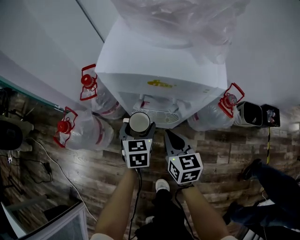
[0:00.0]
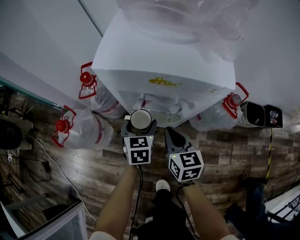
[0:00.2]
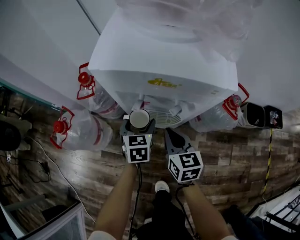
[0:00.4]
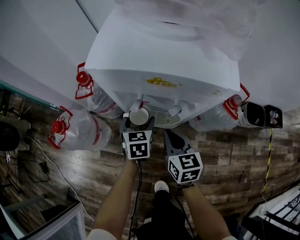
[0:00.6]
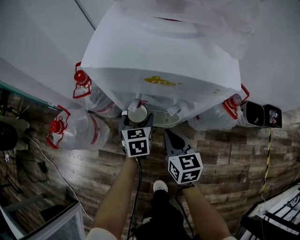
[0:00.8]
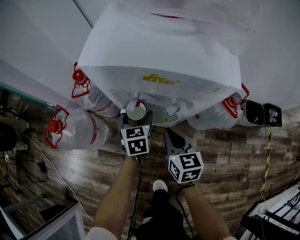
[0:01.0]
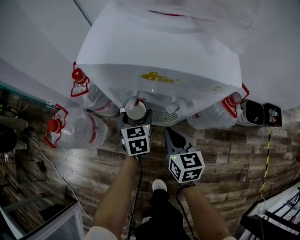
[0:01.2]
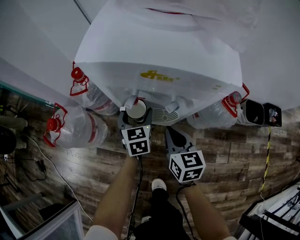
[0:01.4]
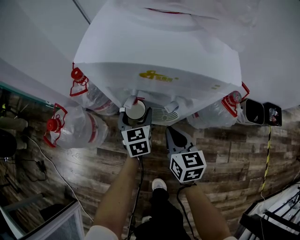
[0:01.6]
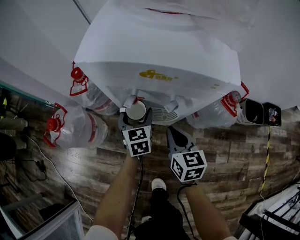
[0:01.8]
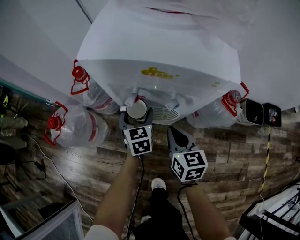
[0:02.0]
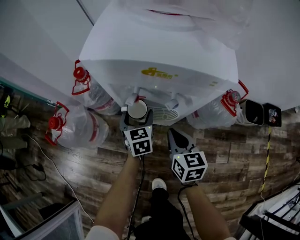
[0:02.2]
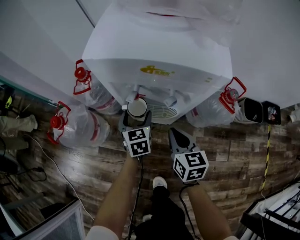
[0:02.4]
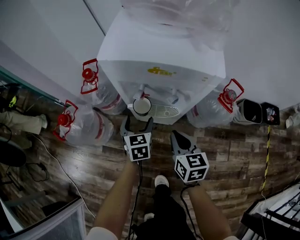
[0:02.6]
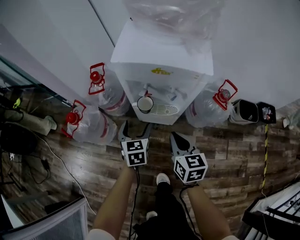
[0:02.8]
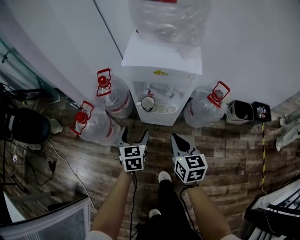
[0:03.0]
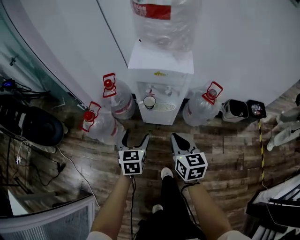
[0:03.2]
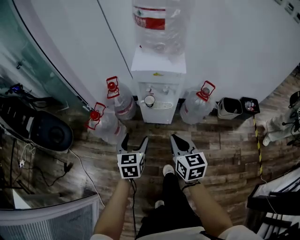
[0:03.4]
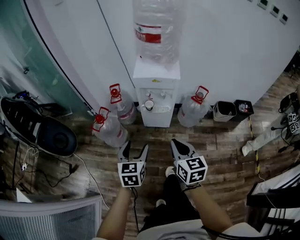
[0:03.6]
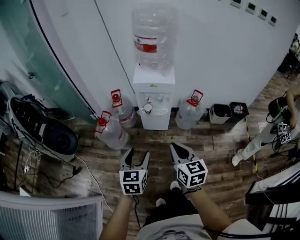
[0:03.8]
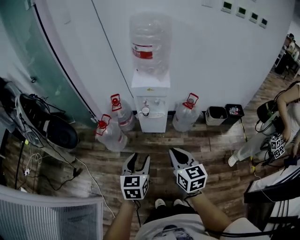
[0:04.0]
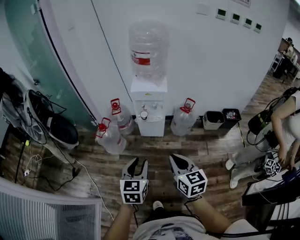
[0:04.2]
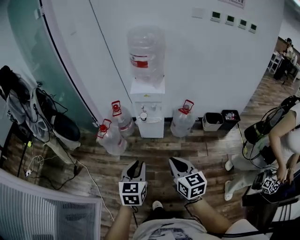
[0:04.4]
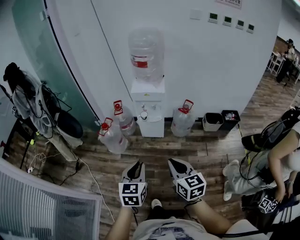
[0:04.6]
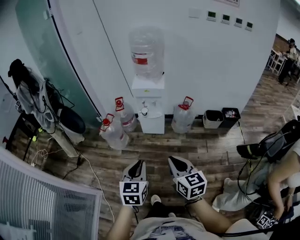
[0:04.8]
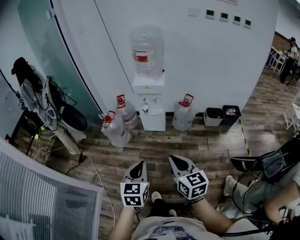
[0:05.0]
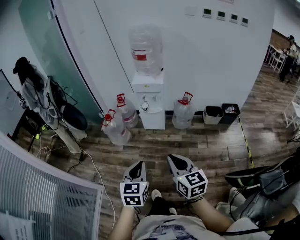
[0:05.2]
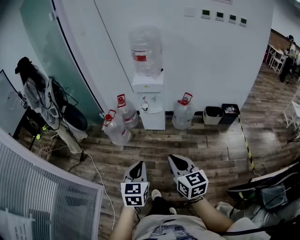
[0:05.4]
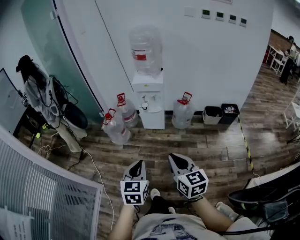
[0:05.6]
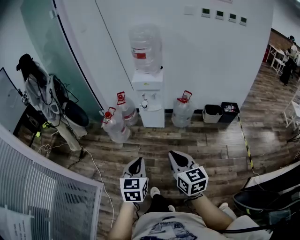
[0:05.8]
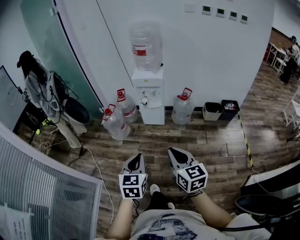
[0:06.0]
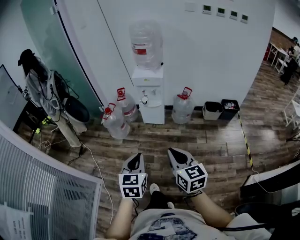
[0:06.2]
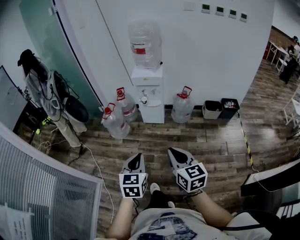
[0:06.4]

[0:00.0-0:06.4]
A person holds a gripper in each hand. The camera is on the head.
0:00.0 to 0:01.6: The right gripper ends up about 5 cm from where it was, while the left gripper shifts some 10 cm downward and forward.
0:01.6 to 0:03.2: The right gripper heads upward and backward, covering approximately 30 cm. The left gripper heads backward and upward, covering approximately 35 cm.
0:03.2 to 0:04.8: Both grippers are carried backward, roughly 50 cm. Both grippers travel together upward, roughly 30 cm. The left gripper closes its fingers.
0:04.8 to 0:06.4: Both grippers travel together backward, about 10 cm.

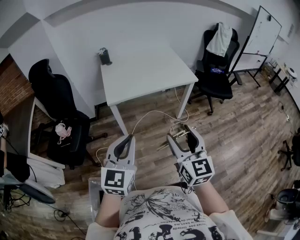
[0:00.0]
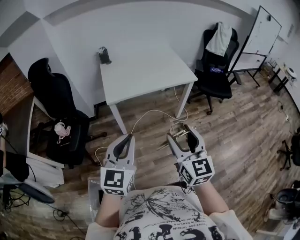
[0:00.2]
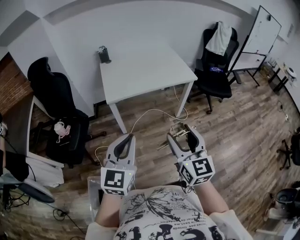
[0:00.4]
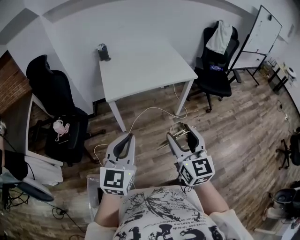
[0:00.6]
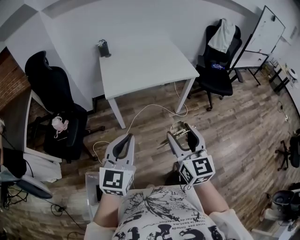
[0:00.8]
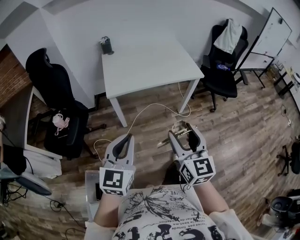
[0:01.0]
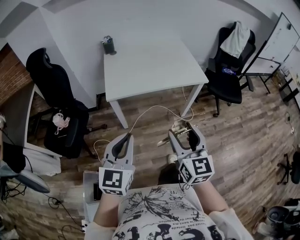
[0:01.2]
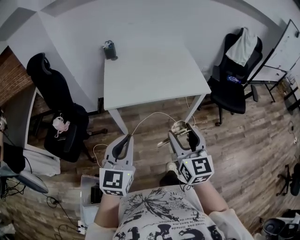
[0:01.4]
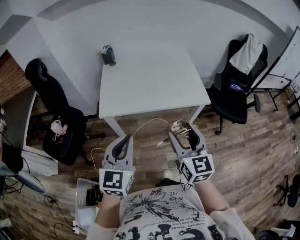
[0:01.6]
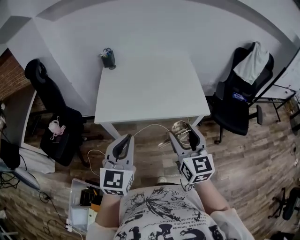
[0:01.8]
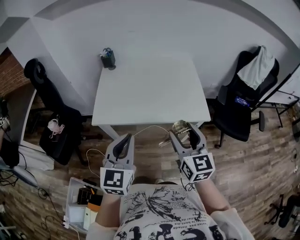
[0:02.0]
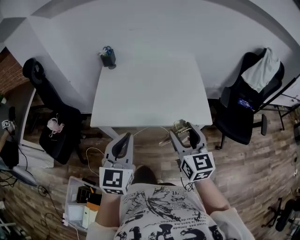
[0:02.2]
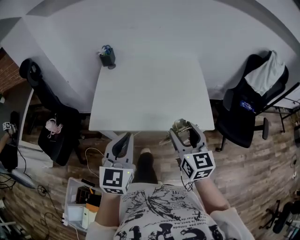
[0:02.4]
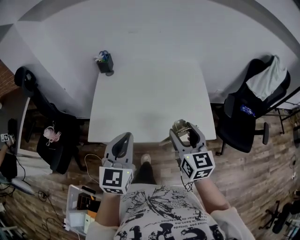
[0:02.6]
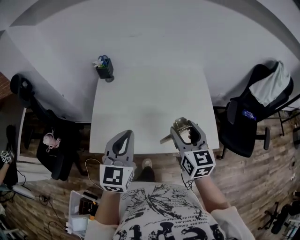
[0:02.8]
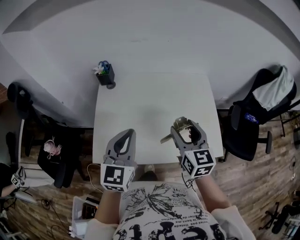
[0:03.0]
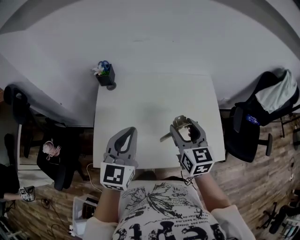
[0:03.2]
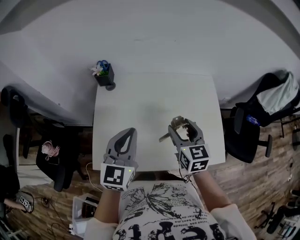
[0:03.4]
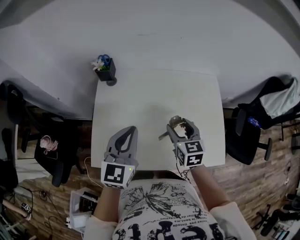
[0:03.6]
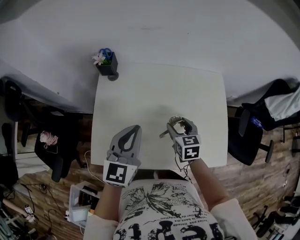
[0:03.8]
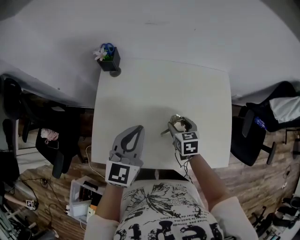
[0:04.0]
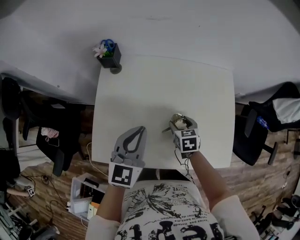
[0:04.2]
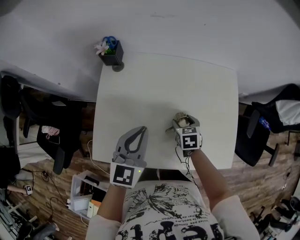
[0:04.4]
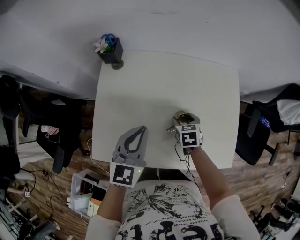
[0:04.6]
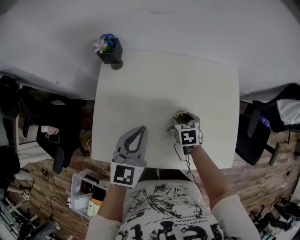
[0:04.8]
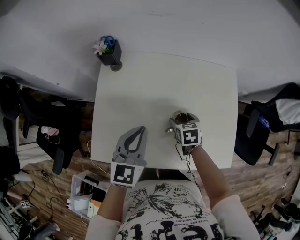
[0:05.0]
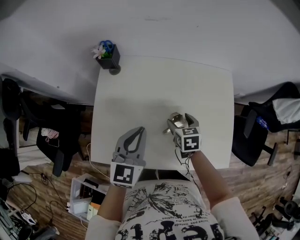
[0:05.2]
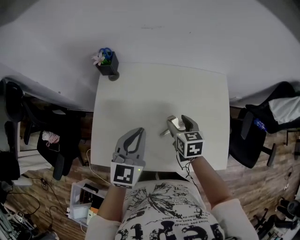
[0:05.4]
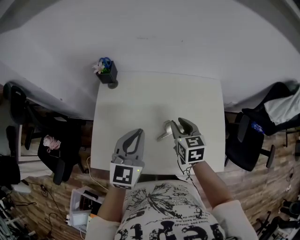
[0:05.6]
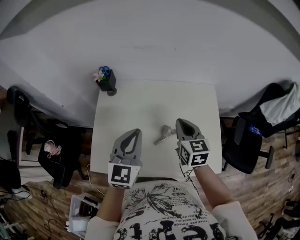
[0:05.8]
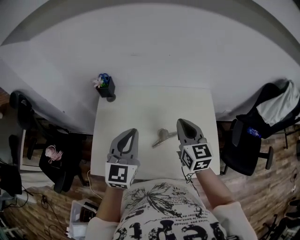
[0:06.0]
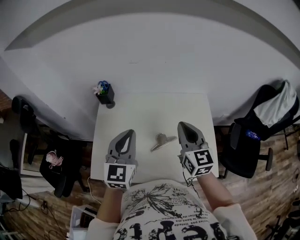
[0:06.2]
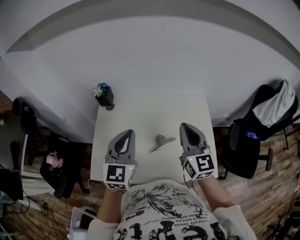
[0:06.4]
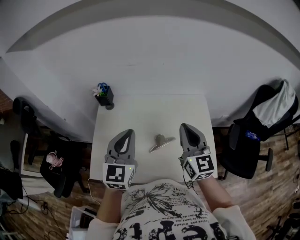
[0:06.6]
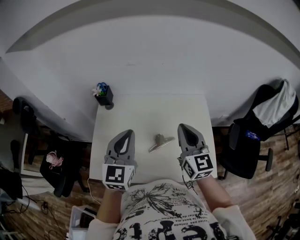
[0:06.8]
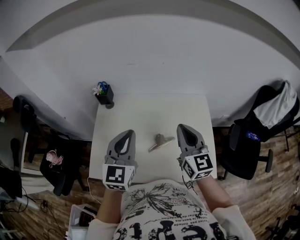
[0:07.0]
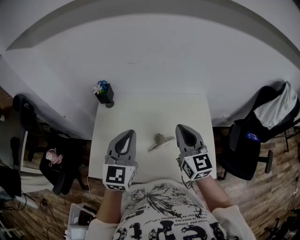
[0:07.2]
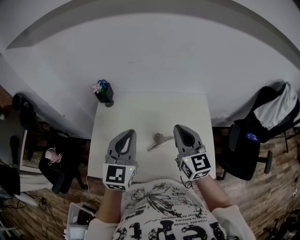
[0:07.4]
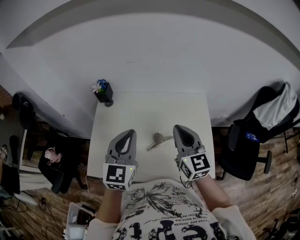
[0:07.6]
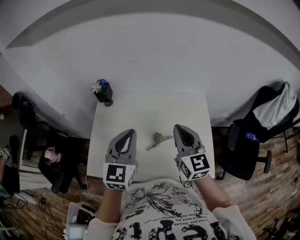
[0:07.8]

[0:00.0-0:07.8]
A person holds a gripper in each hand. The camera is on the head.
0:00.0 to 0:01.6: Both grippers move forward, roughly 25 cm.
0:01.6 to 0:03.2: Both grippers are carried forward, approximately 40 cm.
0:03.2 to 0:04.6: The left gripper shifts some 10 cm downward and forward. The right gripper heads downward, covering some 25 cm, and tips its fingers downward by about 40 degrees.
0:04.6 to 0:06.2: The right gripper is displaced upward by some 30 cm, tips its fingers upward by some 50 degrees, and closes up. Meanwhile the left gripper is displaced upward by about 15 cm.
0:06.2 to 0:07.8: The grippers move only a little.

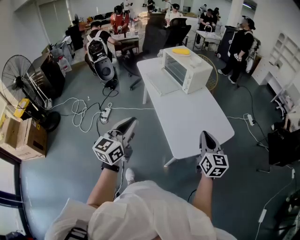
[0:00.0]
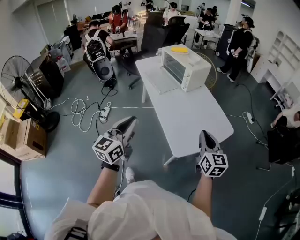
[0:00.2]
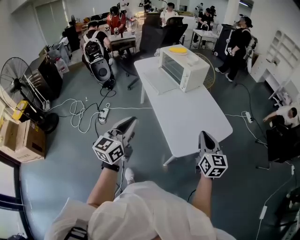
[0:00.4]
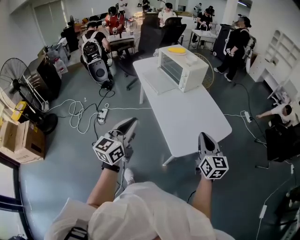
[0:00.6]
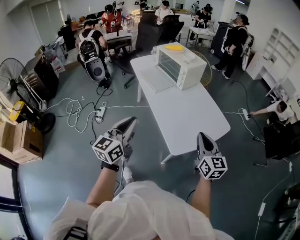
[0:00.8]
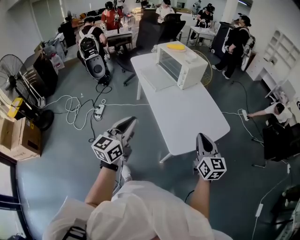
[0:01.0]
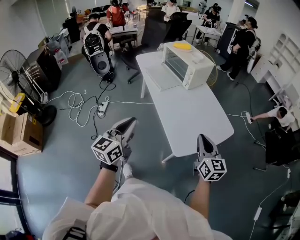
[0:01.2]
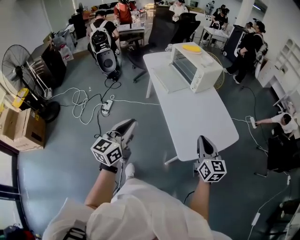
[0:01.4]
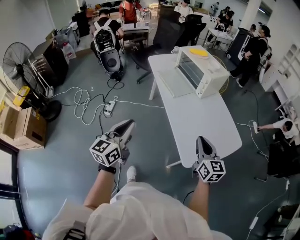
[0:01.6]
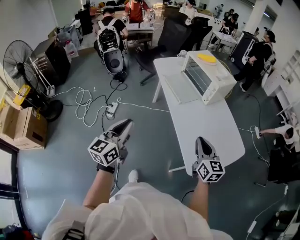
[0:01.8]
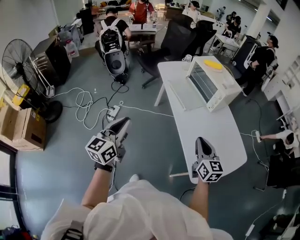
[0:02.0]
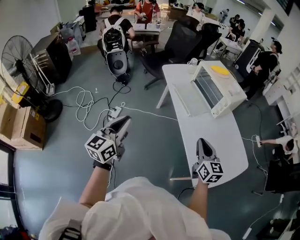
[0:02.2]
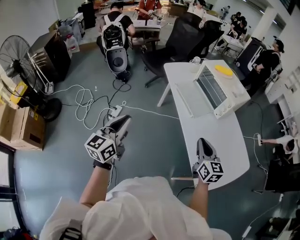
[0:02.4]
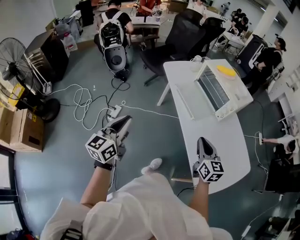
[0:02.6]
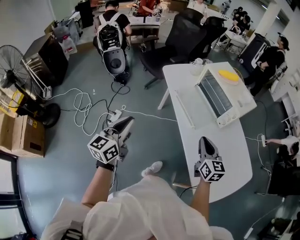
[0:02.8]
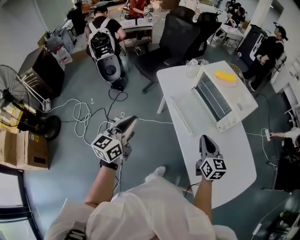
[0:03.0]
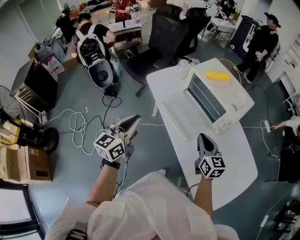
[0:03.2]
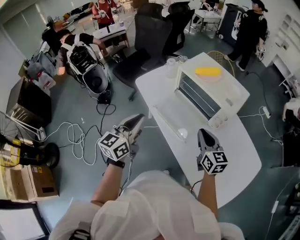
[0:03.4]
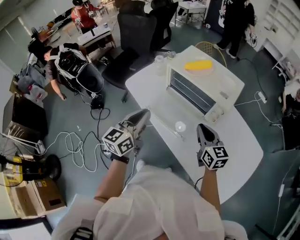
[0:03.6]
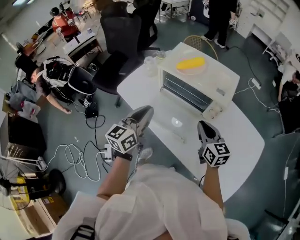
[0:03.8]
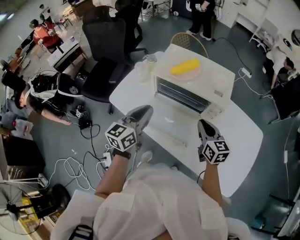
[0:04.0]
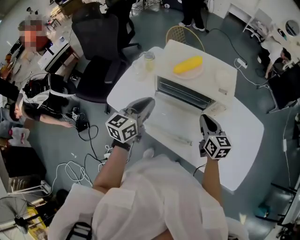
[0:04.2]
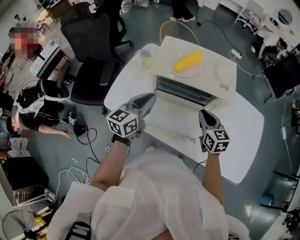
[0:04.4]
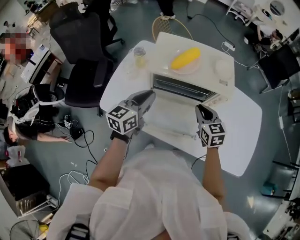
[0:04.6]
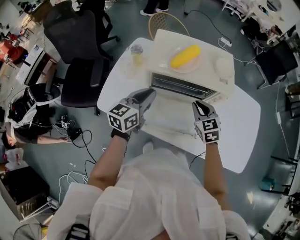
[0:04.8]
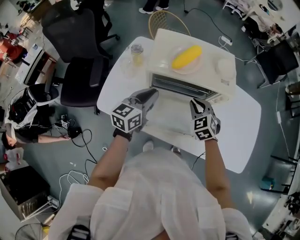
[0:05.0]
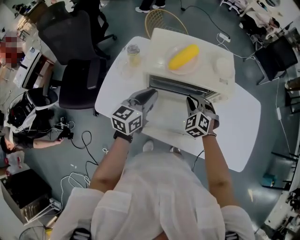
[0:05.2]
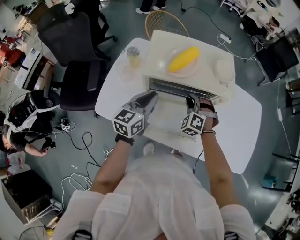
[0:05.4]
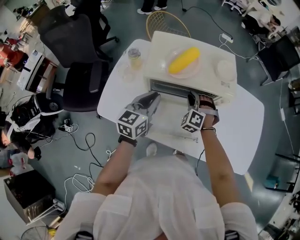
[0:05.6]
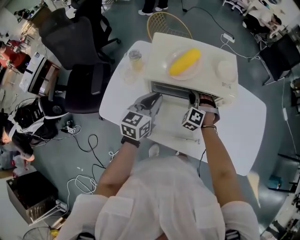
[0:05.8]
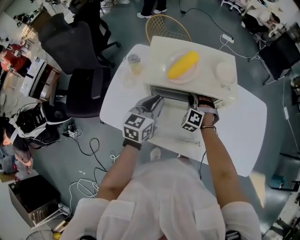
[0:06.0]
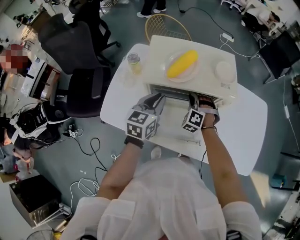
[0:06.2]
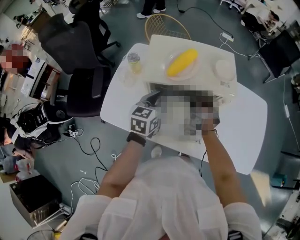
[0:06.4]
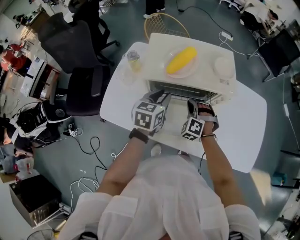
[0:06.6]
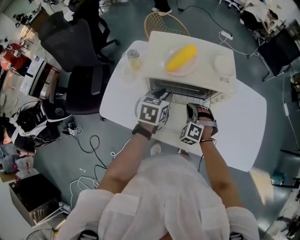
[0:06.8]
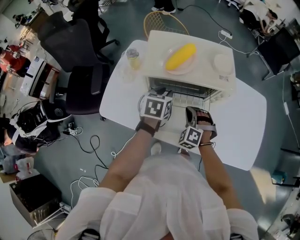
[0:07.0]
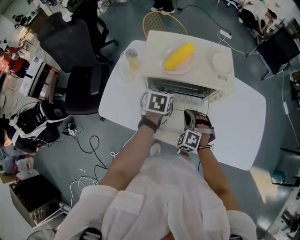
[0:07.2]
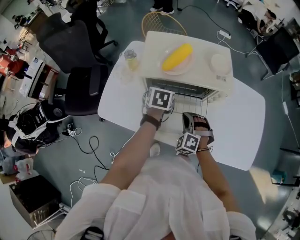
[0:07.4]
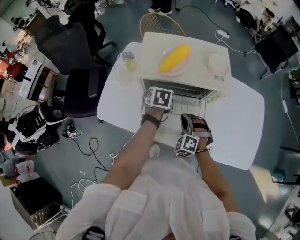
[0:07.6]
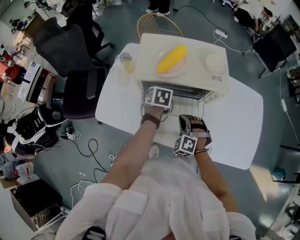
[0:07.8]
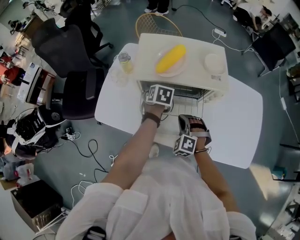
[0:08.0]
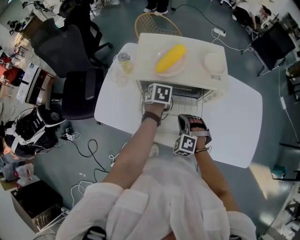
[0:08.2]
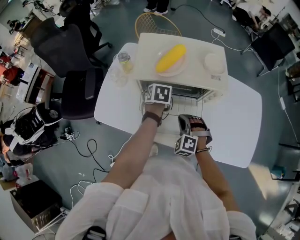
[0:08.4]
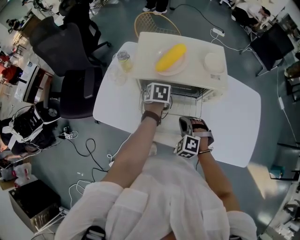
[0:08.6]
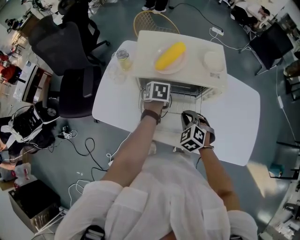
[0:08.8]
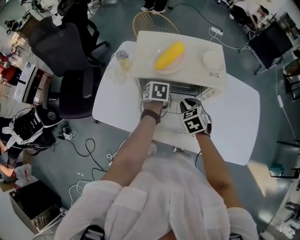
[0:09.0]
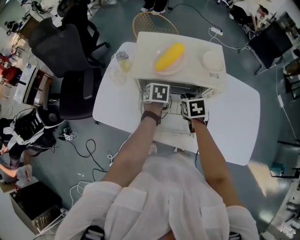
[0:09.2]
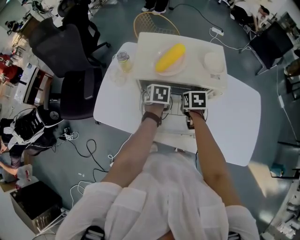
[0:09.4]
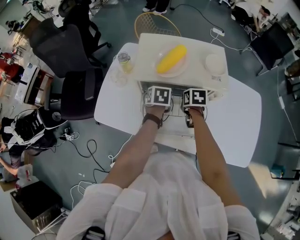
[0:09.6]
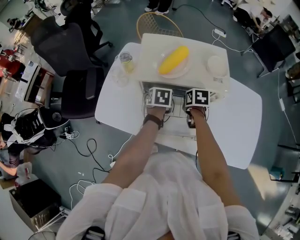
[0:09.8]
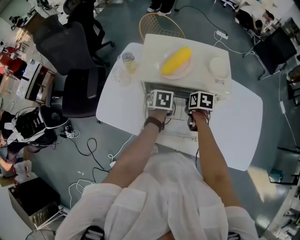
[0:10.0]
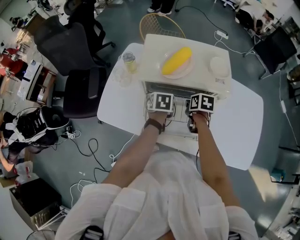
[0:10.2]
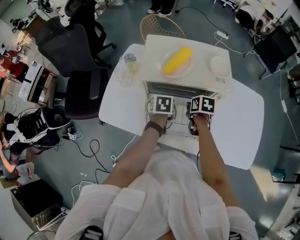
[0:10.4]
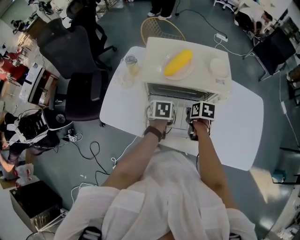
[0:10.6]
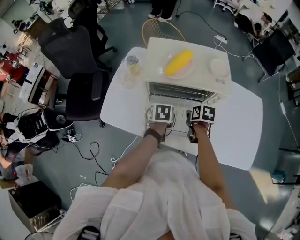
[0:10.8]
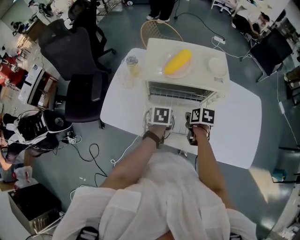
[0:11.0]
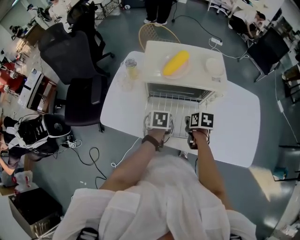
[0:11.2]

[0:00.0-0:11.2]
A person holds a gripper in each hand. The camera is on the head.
0:00.0 to 0:01.6: The left gripper heads to the left, covering about 10 cm, while the right gripper travels to the left and forward by about 15 cm.
0:01.6 to 0:03.2: The two grippers travel together, forward, approximately 50 cm.
0:03.2 to 0:04.8: The right gripper shifts by about 25 cm, and swivels some 40 degrees. Meanwhile the left gripper shifts by roughly 40 cm, and rotates roughly 50 degrees.
0:04.8 to 0:06.4: The right gripper travels downward and forward by some 10 cm, and rolls counterclockwise, seen from behind, by roughly 50 degrees. The left gripper goes some 5 cm forward.
0:06.4 to 0:08.0: The left gripper moves downward, approximately 10 cm, and angles its fingers downward, by roughly 40 degrees, while the right gripper shifts some 10 cm backward.
0:08.0 to 0:09.6: The right gripper is displaced forward by roughly 10 cm, and twists about 80 degrees clockwise, seen from behind.
0:09.6 to 0:11.2: Both grippers move backward, roughly 10 cm.
